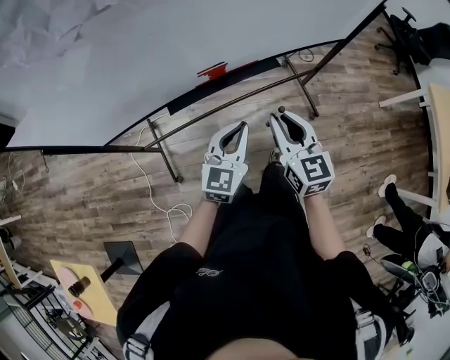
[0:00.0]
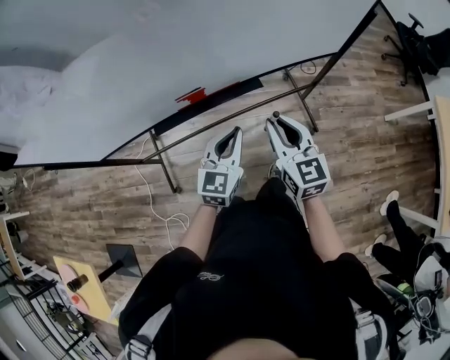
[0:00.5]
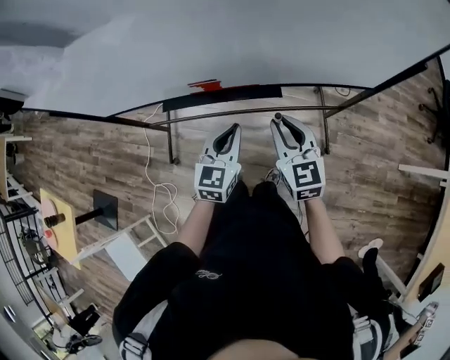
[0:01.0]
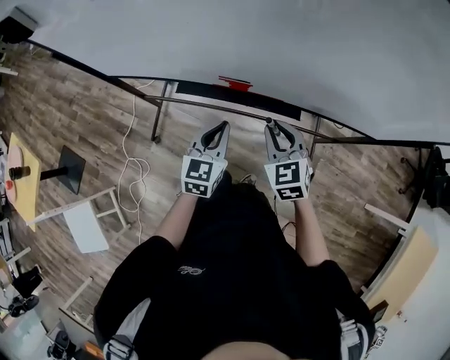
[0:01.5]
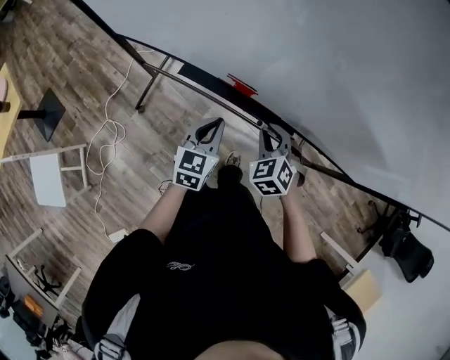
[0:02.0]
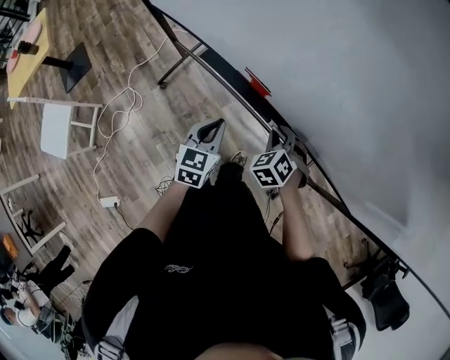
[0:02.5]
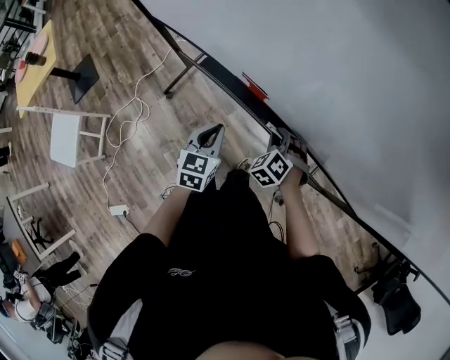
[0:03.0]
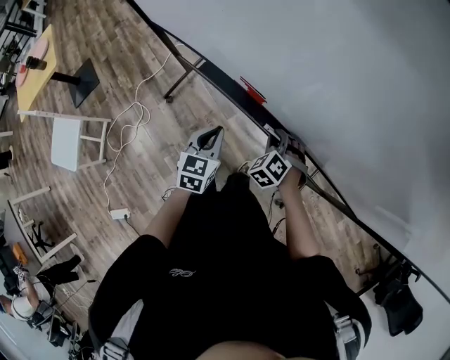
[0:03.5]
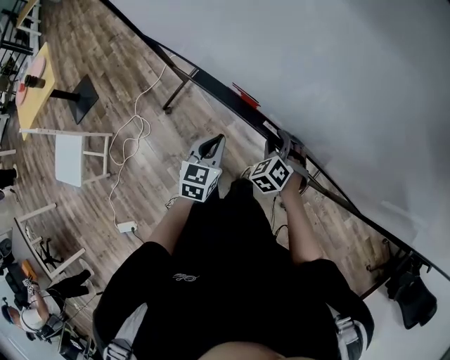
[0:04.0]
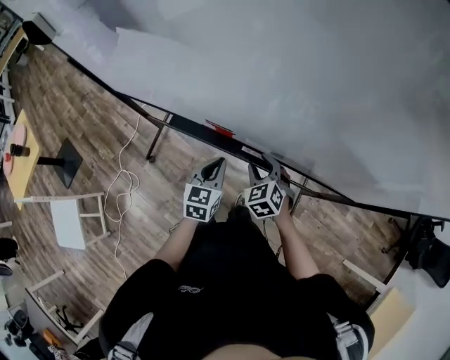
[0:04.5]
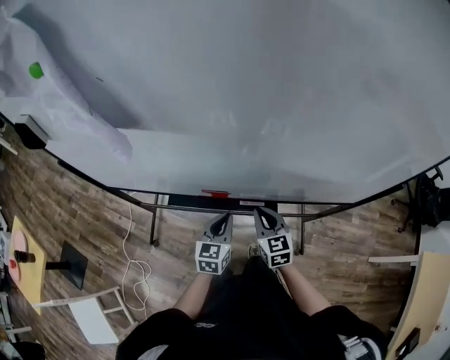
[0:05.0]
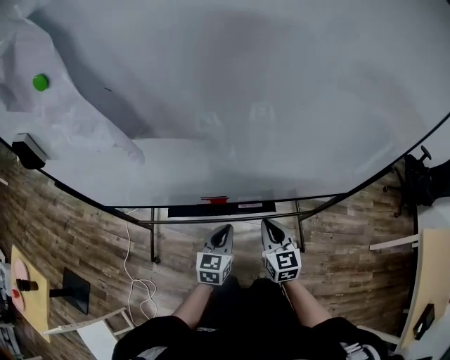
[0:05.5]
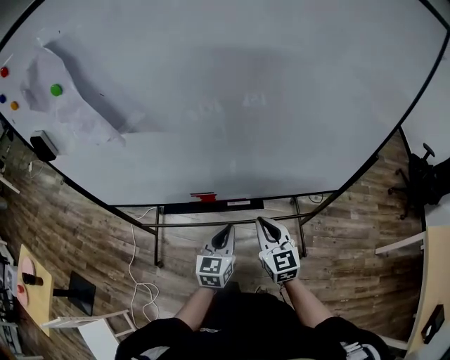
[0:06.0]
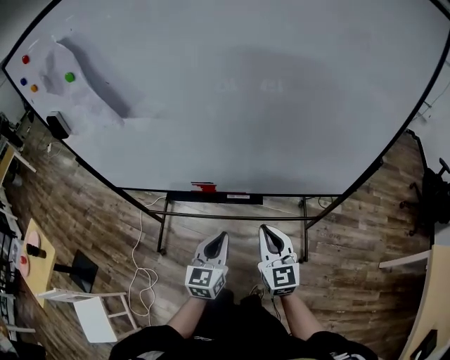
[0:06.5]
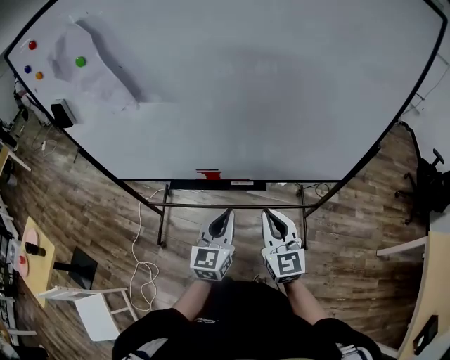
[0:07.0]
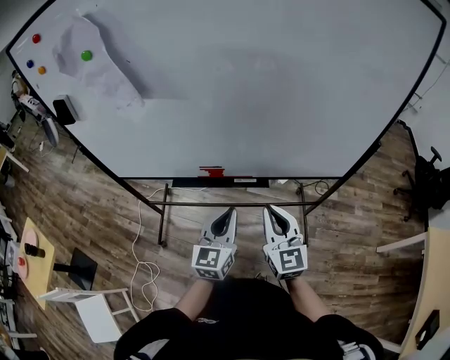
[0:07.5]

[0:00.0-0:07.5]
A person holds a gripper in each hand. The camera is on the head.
0:00.0 to 0:02.0: The right gripper moves approximately 20 cm, and twists approximately 60 degrees counterclockwise, seen from behind. The left gripper shifts by some 15 cm, and changes its angle by some 50 degrees.
0:02.0 to 0:04.0: The right gripper heads downward, covering roughly 10 cm, and opens up.
0:04.0 to 0:05.5: The left gripper heads upward, covering roughly 5 cm, and turns by about 40 degrees, while the right gripper shifts about 15 cm upward, rotates around the line of its fingers by about 60 degrees, clockwise from behind, and closes.
0:05.5 to 0:07.5: The right gripper heads backward, upward and to the right, covering about 20 cm, while the left gripper goes approximately 20 cm upward, backward and to the right.

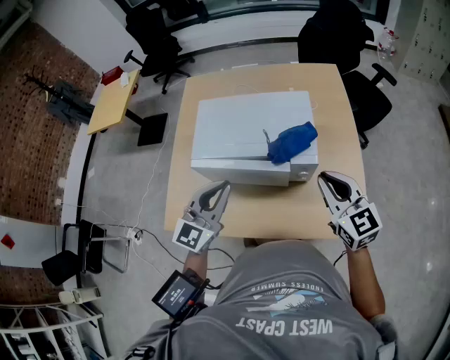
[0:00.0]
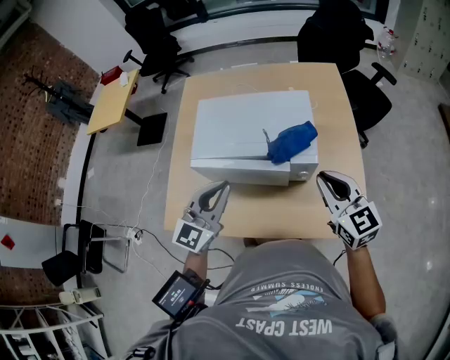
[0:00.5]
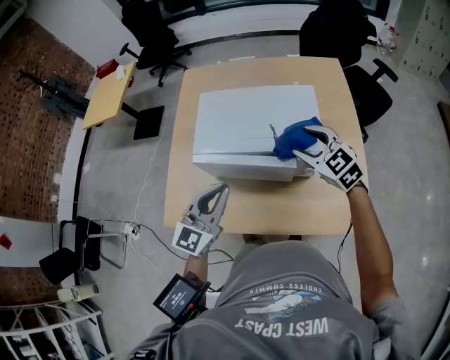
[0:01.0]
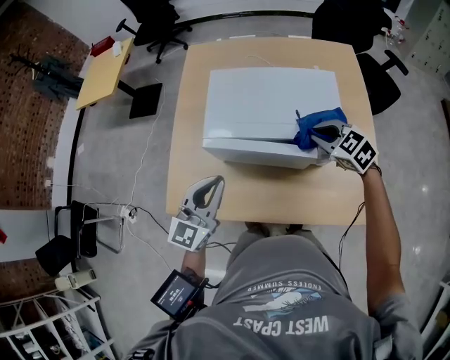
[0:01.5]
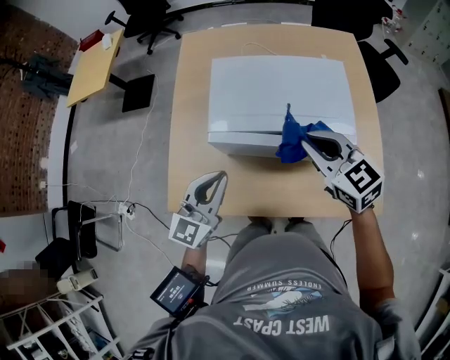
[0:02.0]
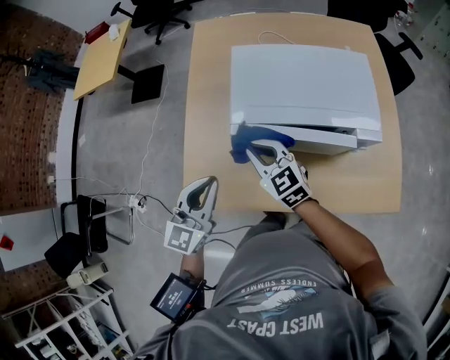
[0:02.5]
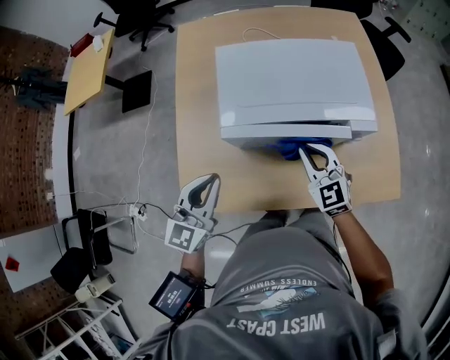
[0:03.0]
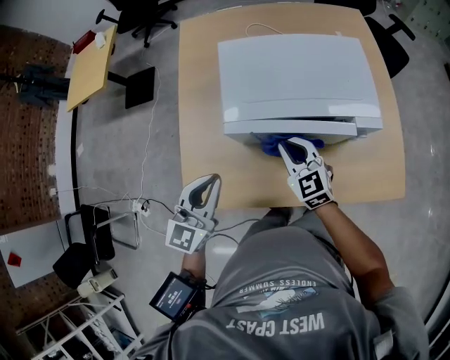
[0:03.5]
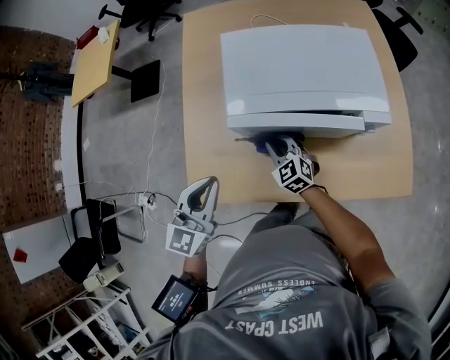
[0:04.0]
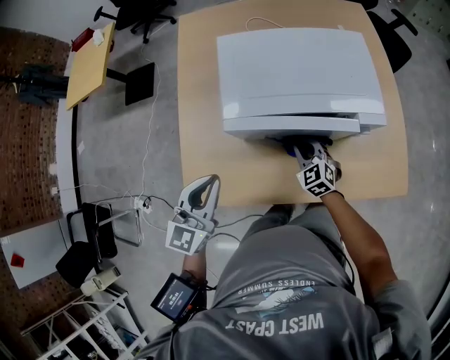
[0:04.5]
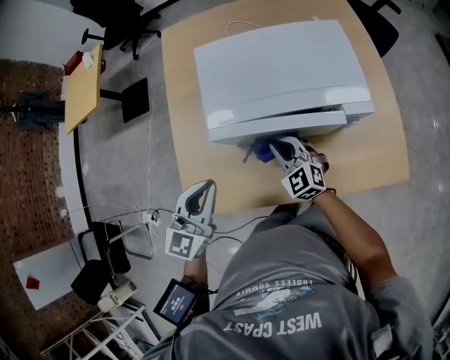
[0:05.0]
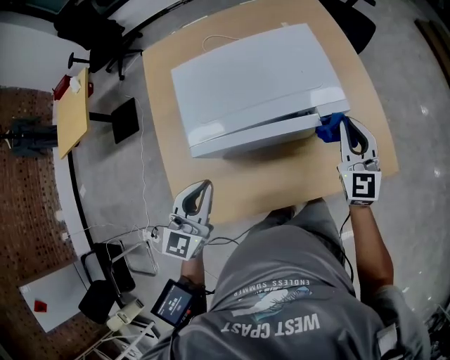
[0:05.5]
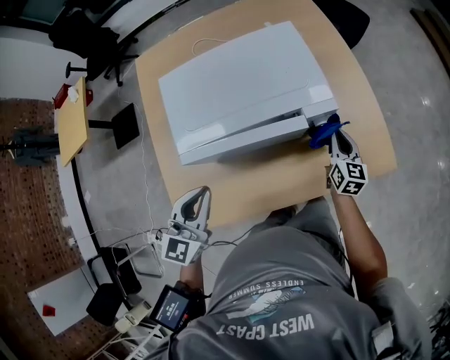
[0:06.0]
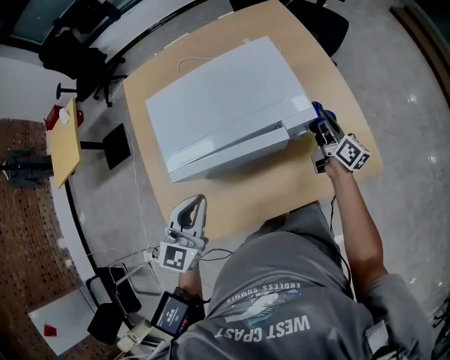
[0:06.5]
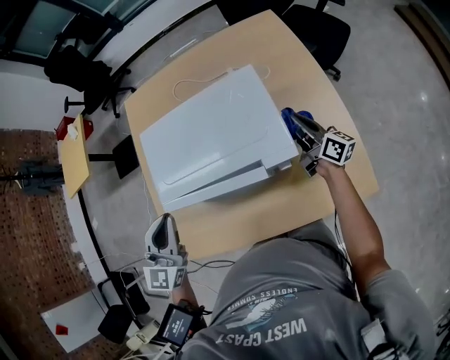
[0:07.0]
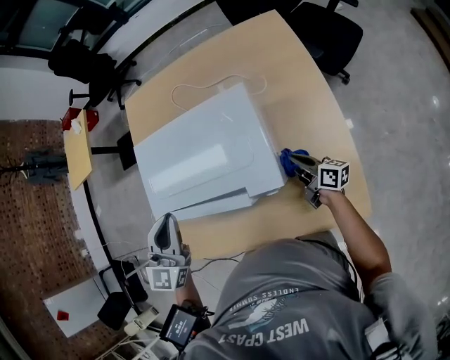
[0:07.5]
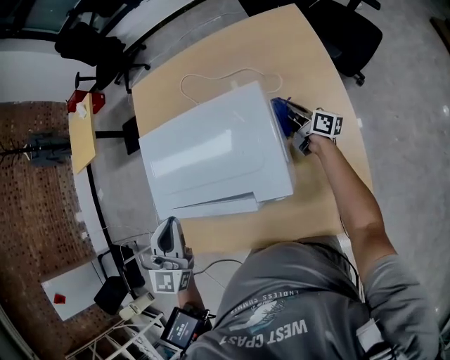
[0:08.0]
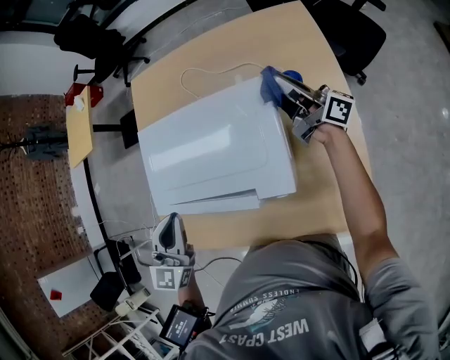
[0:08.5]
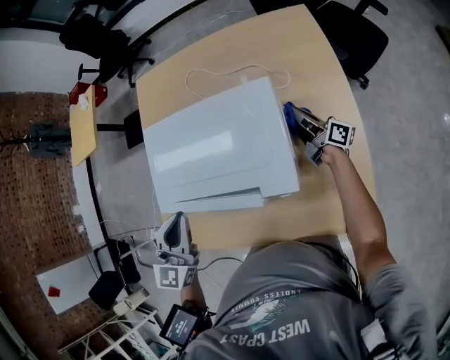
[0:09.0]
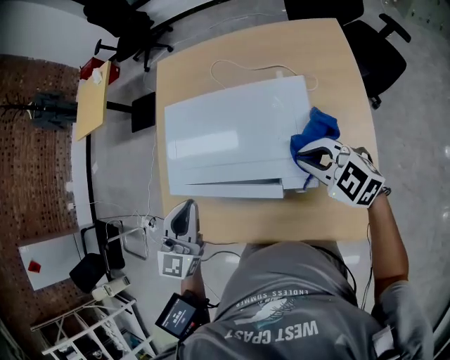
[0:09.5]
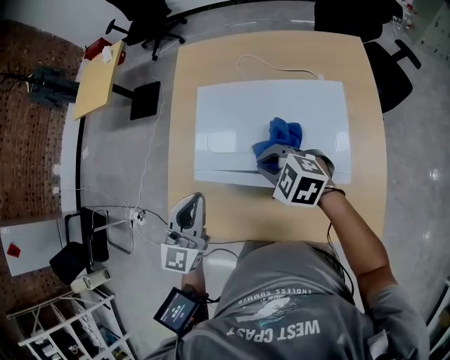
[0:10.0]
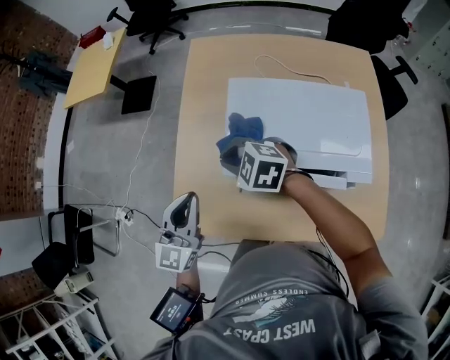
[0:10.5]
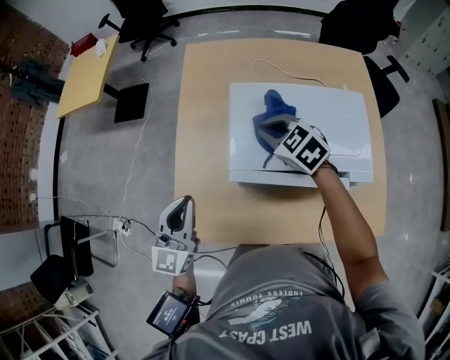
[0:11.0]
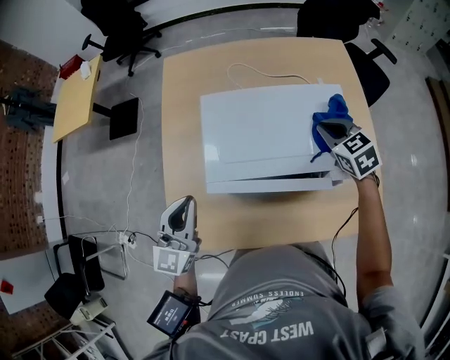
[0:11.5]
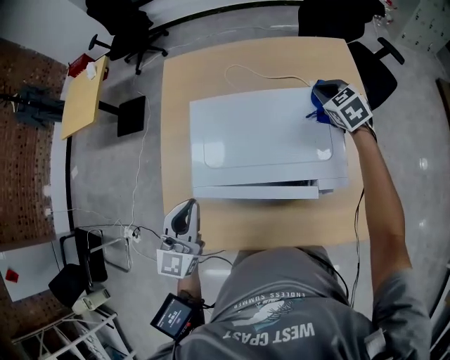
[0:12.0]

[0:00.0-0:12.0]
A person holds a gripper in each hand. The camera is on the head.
0:00.0 to 0:02.0: The right gripper is displaced to the left and forward by about 20 cm, and opens and closes again; the left gripper is displaced to the left and downward by roughly 15 cm.
0:02.0 to 0:04.0: The right gripper travels downward and to the left by roughly 30 cm; the left gripper shifts about 10 cm to the left.
0:04.0 to 0:06.0: The left gripper moves approximately 10 cm. The right gripper reaches roughly 20 cm upward, then returns, and changes its angle by about 60 degrees.
0:06.0 to 0:08.0: The left gripper changes place by about 15 cm, and swivels some 20 degrees. Meanwhile the right gripper reaches some 5 cm upward, then returns, and rotates roughly 60 degrees.
0:08.0 to 0:10.0: The right gripper travels to the left and upward by about 40 cm, and tips its fingers downward by approximately 40 degrees; the left gripper moves to the left, about 15 cm.
0:10.0 to 0:12.0: The right gripper changes place by about 30 cm, and changes its angle by roughly 40 degrees.

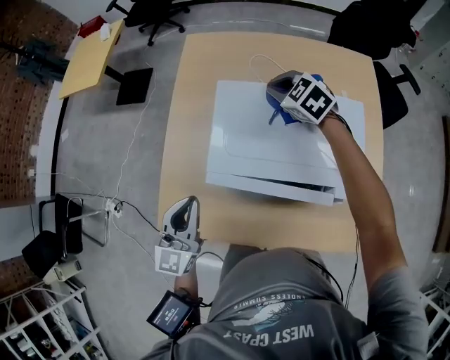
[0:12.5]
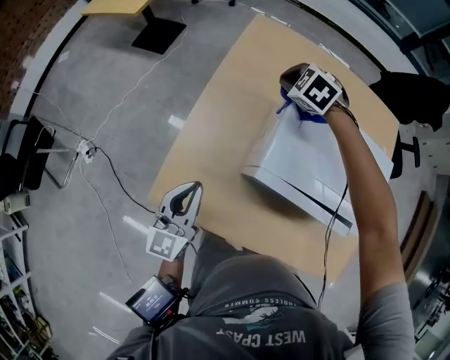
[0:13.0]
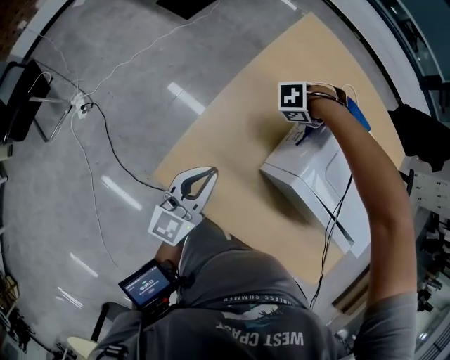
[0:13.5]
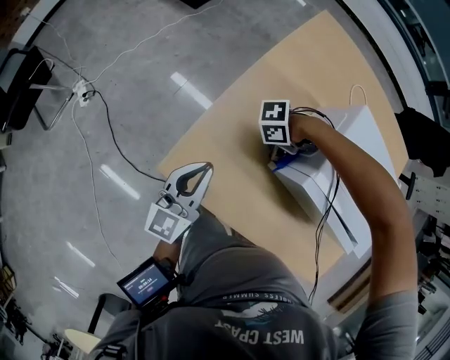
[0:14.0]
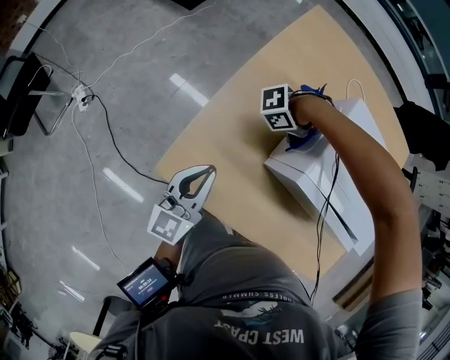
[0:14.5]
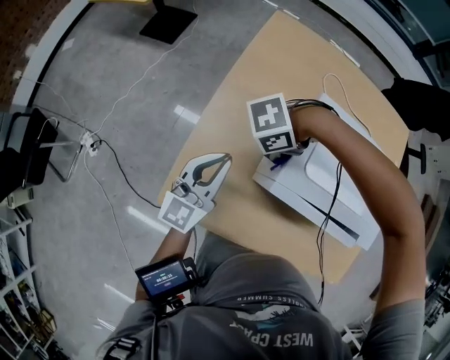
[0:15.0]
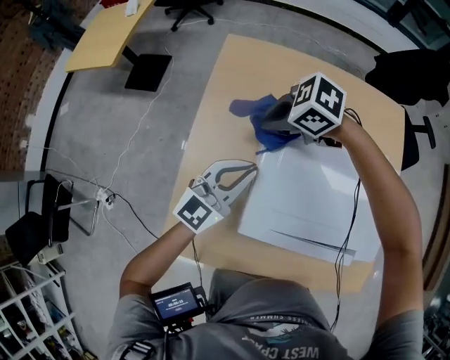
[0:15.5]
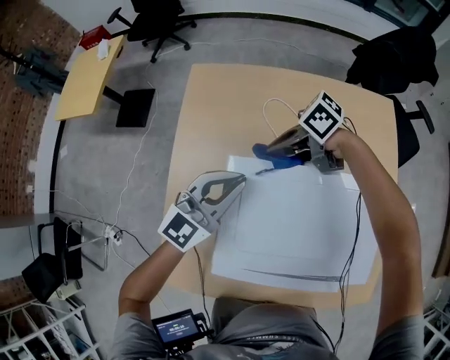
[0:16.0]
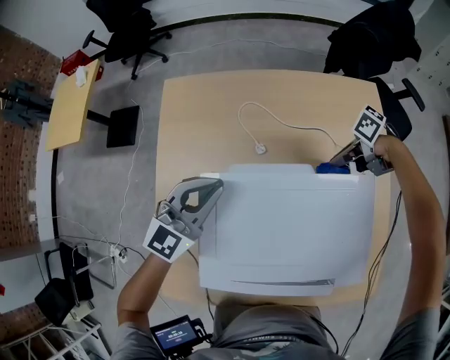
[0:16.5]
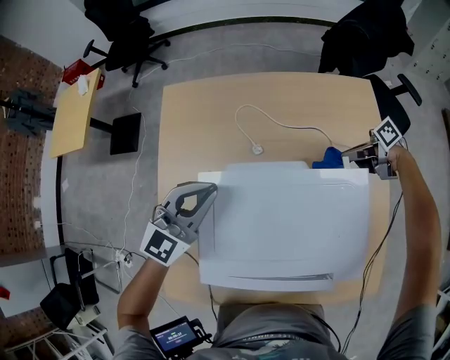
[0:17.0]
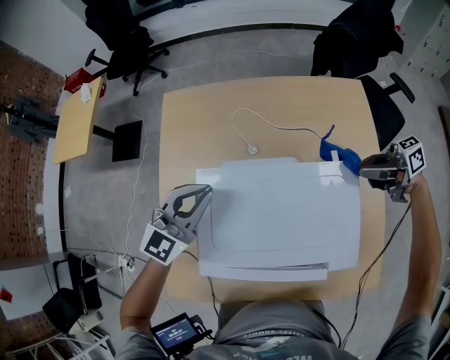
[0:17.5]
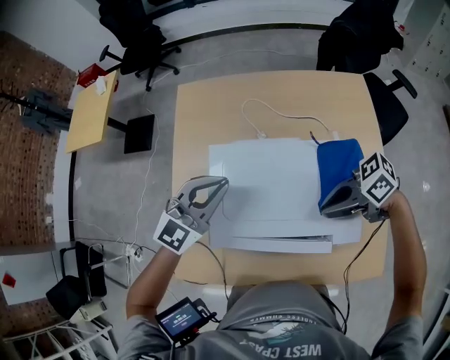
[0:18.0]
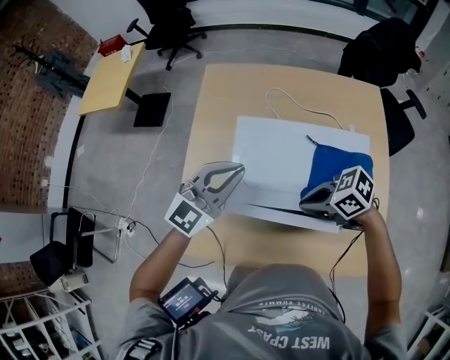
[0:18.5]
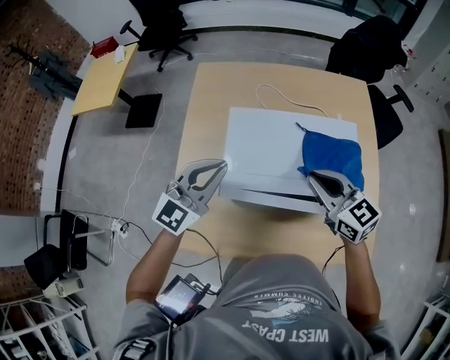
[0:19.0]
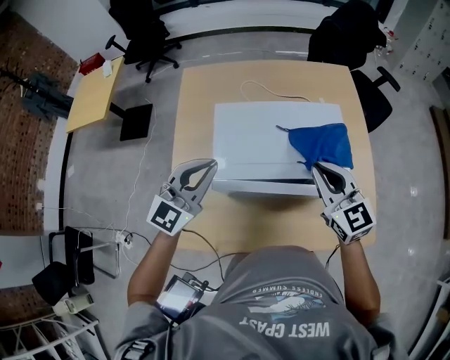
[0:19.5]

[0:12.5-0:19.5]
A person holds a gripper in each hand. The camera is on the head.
0:12.5 to 0:14.5: The left gripper shifts by about 20 cm, and swivels some 20 degrees; the right gripper ends up roughly 35 cm from where it was, and turns by roughly 100 degrees.
0:14.5 to 0:16.0: The right gripper changes place by roughly 30 cm, and swivels about 100 degrees, while the left gripper shifts by about 40 cm, and turns by some 50 degrees.
0:16.0 to 0:17.5: The right gripper ends up about 35 cm from where it was, and turns by roughly 30 degrees. The left gripper moves roughly 5 cm.
0:17.5 to 0:19.5: The left gripper changes place by roughly 20 cm; the right gripper moves approximately 30 cm, and swivels about 80 degrees.
